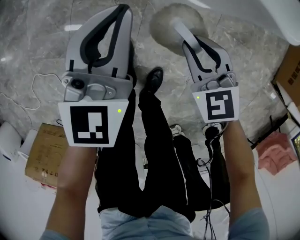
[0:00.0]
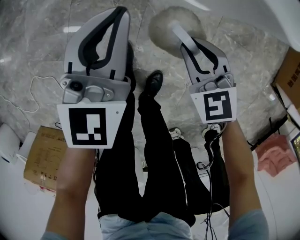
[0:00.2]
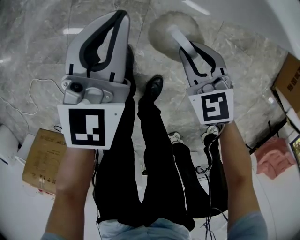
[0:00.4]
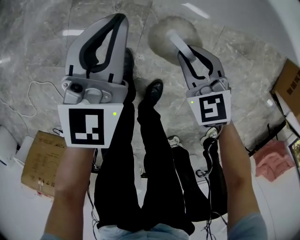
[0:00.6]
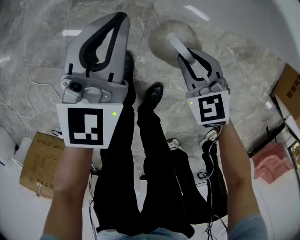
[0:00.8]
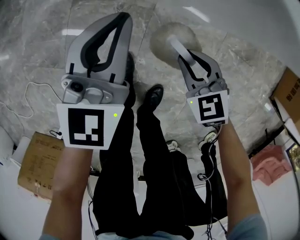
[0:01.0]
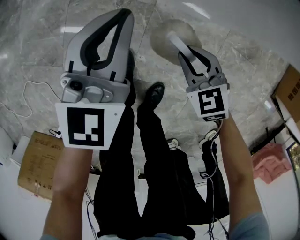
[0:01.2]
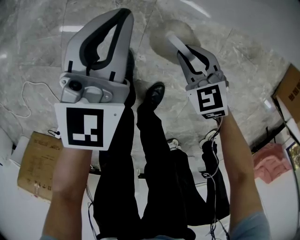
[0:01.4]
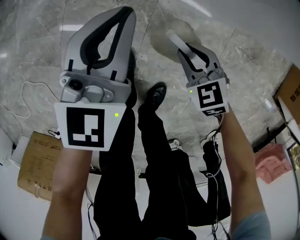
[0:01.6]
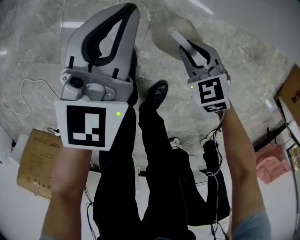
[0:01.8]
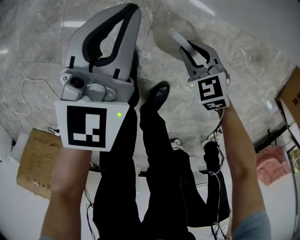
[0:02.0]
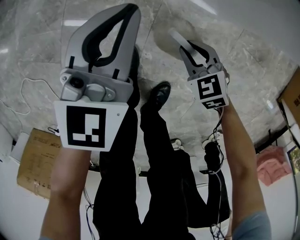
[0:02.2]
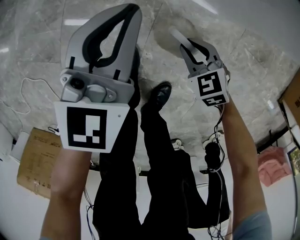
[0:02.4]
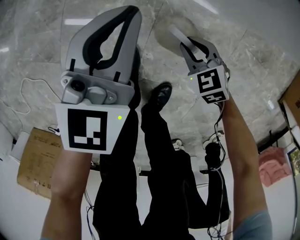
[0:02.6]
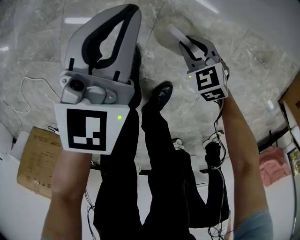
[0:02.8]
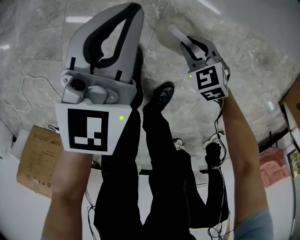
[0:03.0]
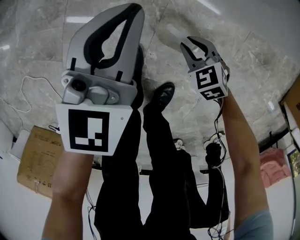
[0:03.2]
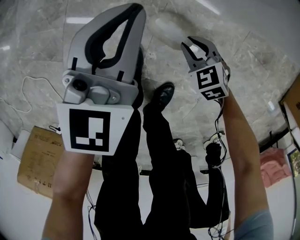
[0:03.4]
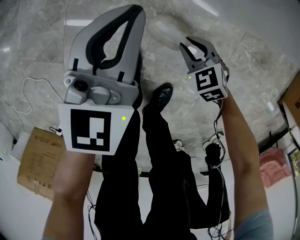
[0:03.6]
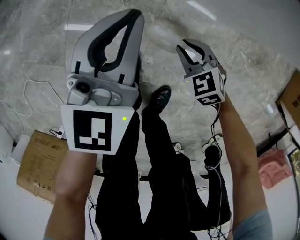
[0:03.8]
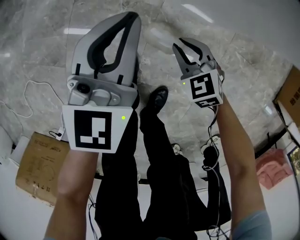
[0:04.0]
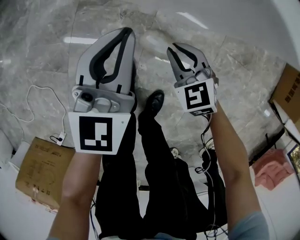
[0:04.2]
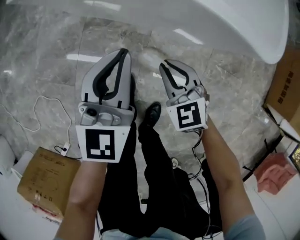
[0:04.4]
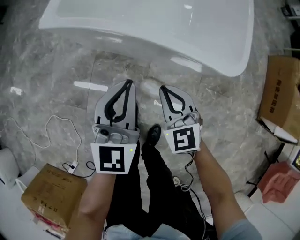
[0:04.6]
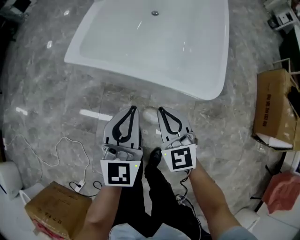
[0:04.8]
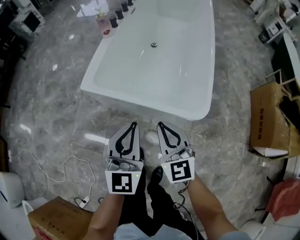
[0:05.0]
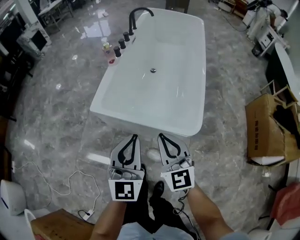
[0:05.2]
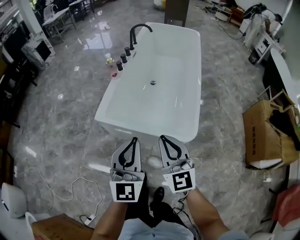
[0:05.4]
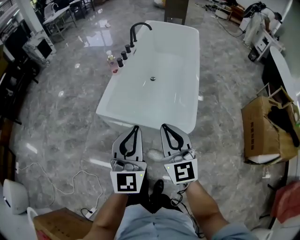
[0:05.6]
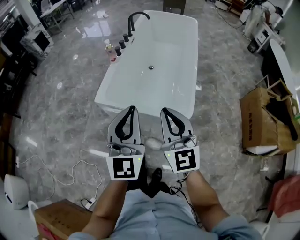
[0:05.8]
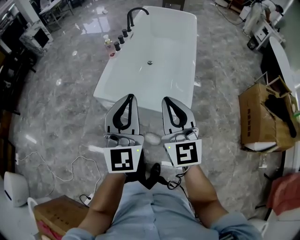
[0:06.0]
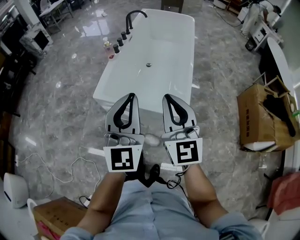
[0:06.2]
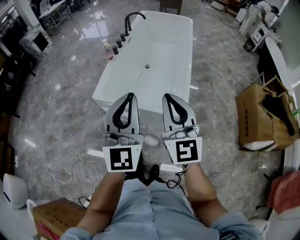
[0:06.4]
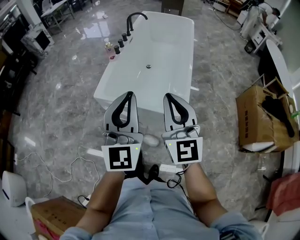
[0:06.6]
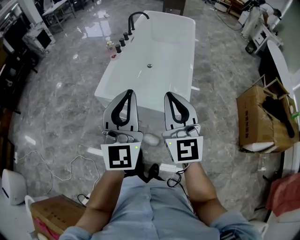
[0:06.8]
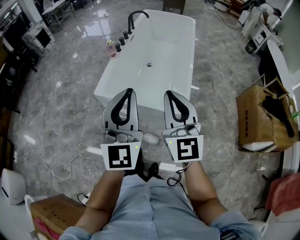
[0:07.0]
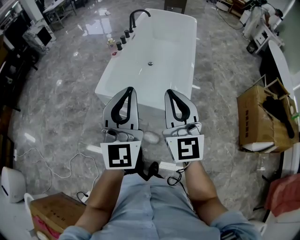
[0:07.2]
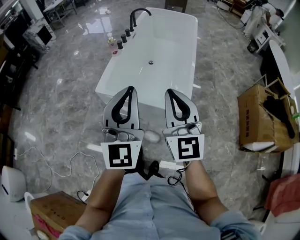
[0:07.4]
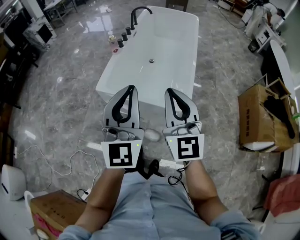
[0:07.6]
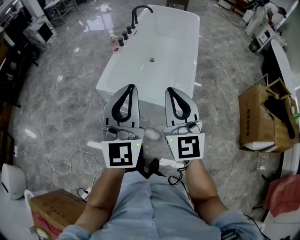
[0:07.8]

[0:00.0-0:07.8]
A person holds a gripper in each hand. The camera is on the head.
0:00.0 to 0:01.6: The two grippers go roughly 15 cm downward.
0:01.6 to 0:03.2: The right gripper heads downward, covering about 10 cm. The left gripper moves roughly 5 cm.
0:03.2 to 0:04.6: Both grippers move upward, approximately 35 cm. The right gripper turns by approximately 30 degrees, and closes up.
0:04.6 to 0:06.2: The grippers both shift upward by roughly 50 cm. The right gripper points its fingers about 40 degrees further upward. The left gripper swivels about 30 degrees.
0:06.2 to 0:07.8: The grippers stay close to where they were, moving slightly.

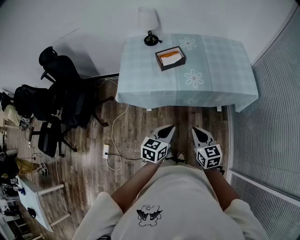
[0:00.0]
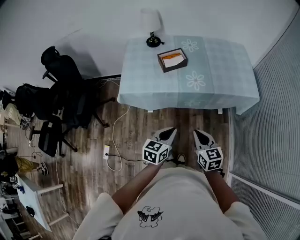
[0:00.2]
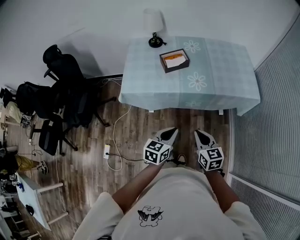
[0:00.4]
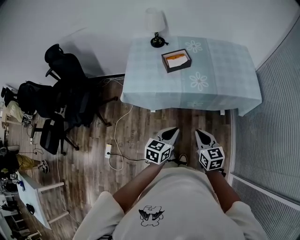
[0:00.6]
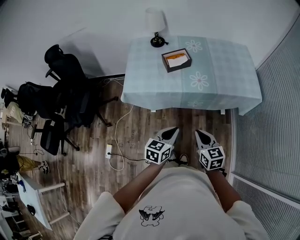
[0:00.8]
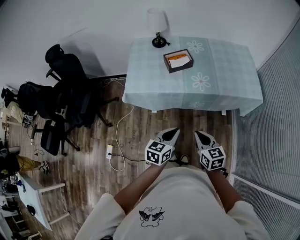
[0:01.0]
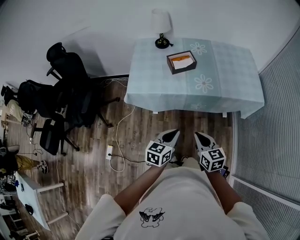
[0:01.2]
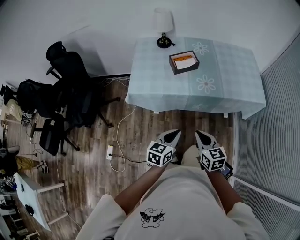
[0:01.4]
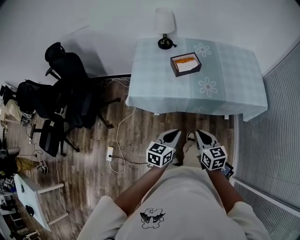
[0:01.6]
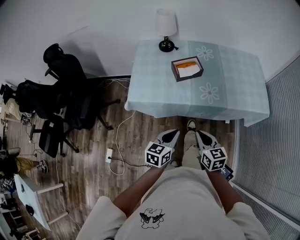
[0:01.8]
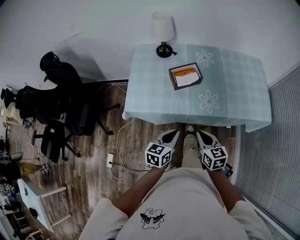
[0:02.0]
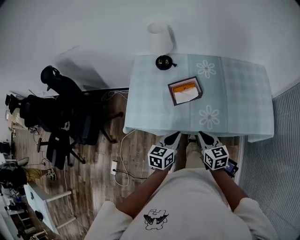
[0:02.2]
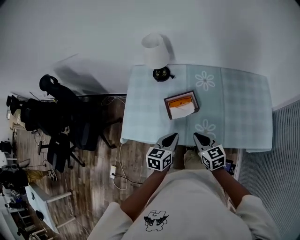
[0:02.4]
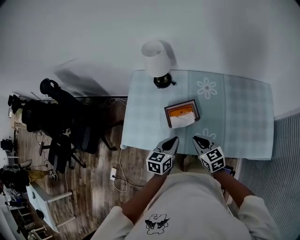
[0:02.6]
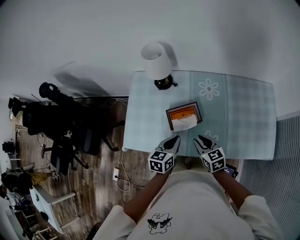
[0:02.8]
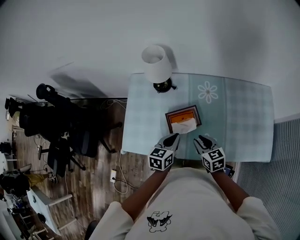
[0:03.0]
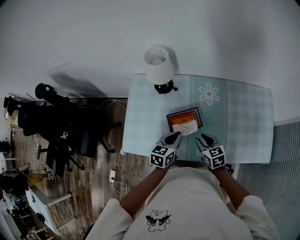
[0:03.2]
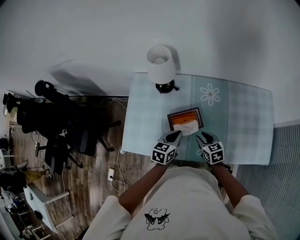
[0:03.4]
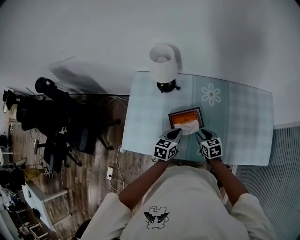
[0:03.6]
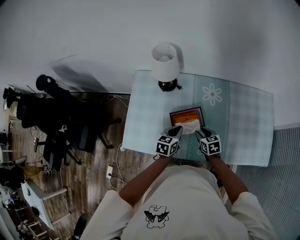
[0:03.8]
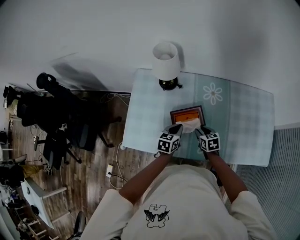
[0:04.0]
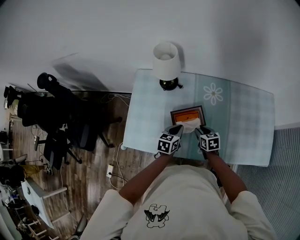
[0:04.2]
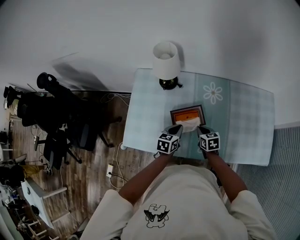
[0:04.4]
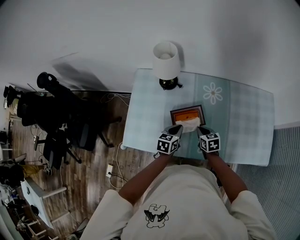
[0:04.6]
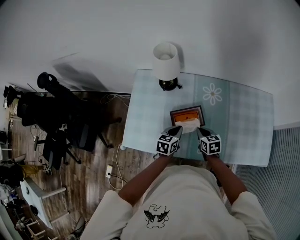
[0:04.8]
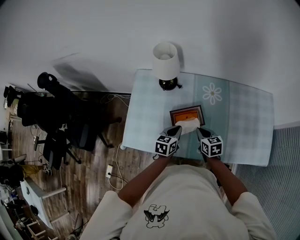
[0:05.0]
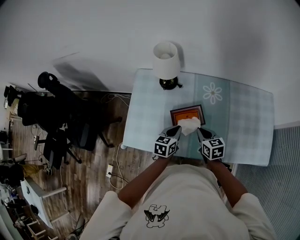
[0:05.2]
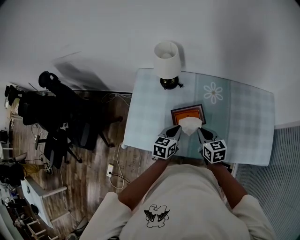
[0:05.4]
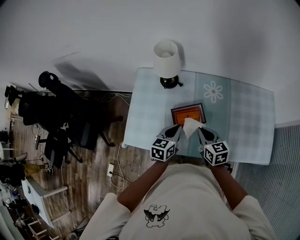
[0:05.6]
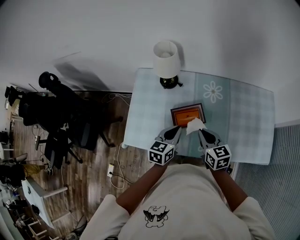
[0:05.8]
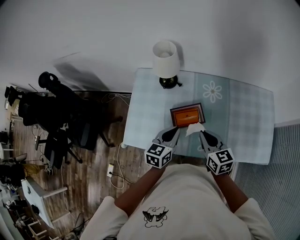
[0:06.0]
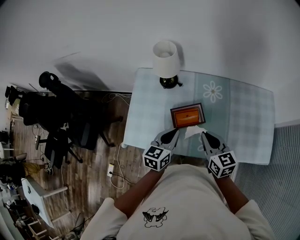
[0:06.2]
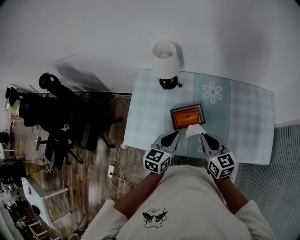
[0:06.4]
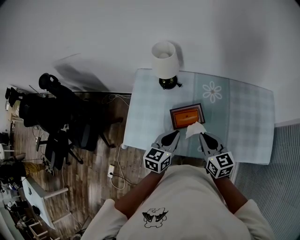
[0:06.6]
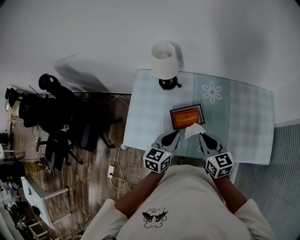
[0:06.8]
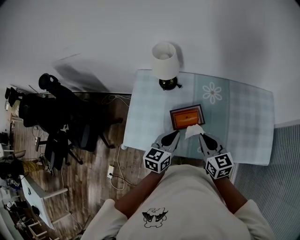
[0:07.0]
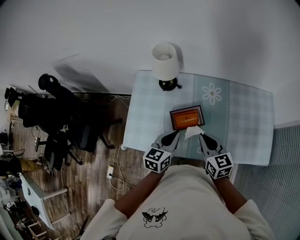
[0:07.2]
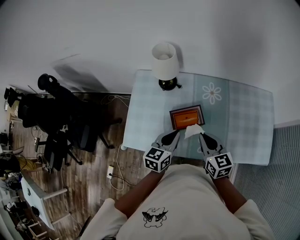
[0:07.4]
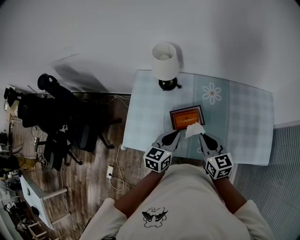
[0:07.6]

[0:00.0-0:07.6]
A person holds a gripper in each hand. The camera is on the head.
0:00.0 to 0:01.6: Both grippers travel together to the left, roughly 5 cm.
0:01.6 to 0:03.0: Both grippers are carried forward, approximately 40 cm. The right gripper opens up.
0:03.0 to 0:04.6: The left gripper heads downward, covering about 5 cm; the right gripper is displaced downward and forward by some 10 cm, and closes up.
0:04.6 to 0:06.0: Both grippers move upward, roughly 15 cm. The right gripper turns by roughly 20 degrees.
0:06.0 to 0:07.6: The grippers stay close to where they were, moving slightly.

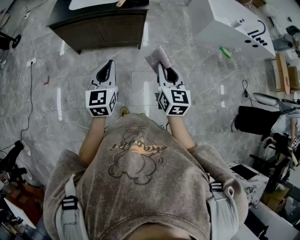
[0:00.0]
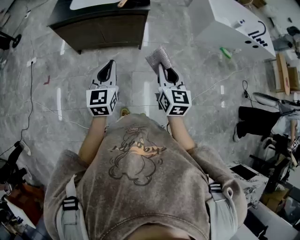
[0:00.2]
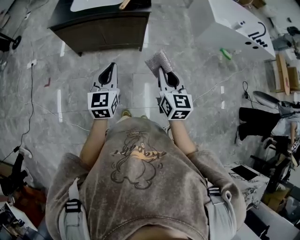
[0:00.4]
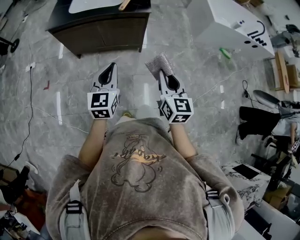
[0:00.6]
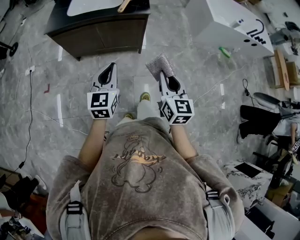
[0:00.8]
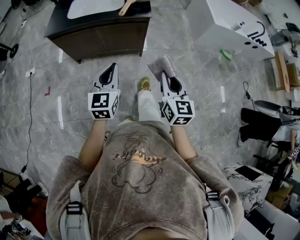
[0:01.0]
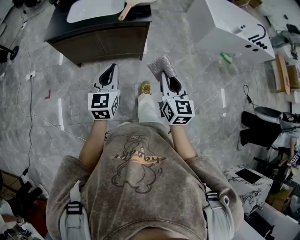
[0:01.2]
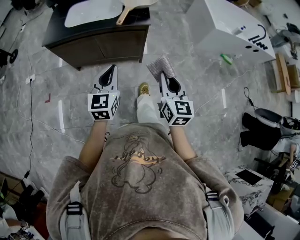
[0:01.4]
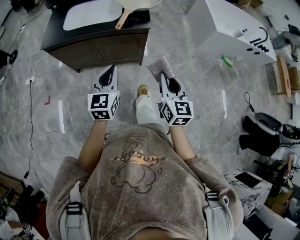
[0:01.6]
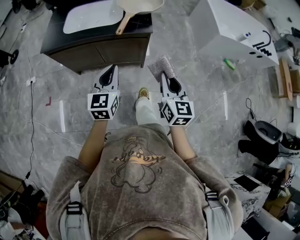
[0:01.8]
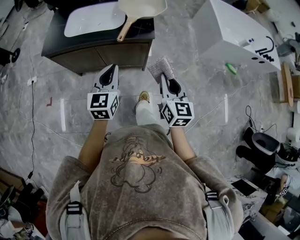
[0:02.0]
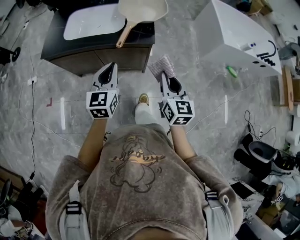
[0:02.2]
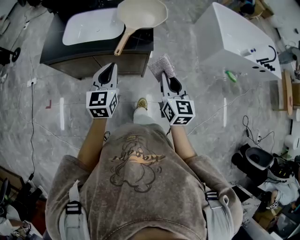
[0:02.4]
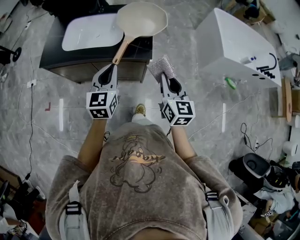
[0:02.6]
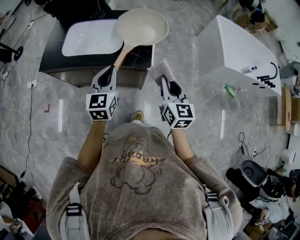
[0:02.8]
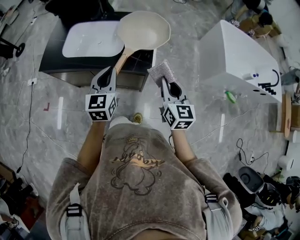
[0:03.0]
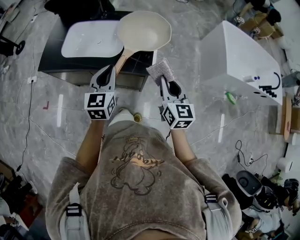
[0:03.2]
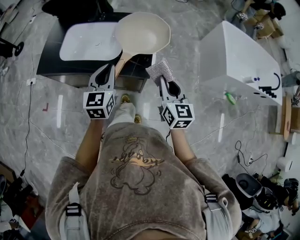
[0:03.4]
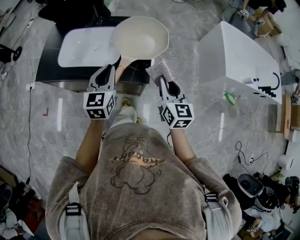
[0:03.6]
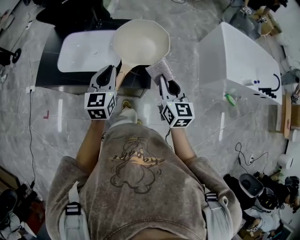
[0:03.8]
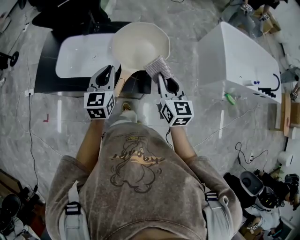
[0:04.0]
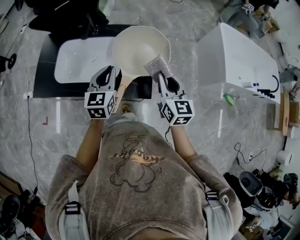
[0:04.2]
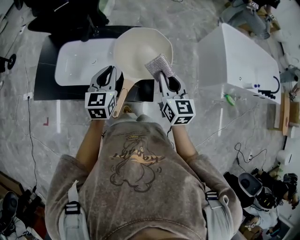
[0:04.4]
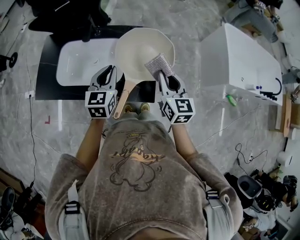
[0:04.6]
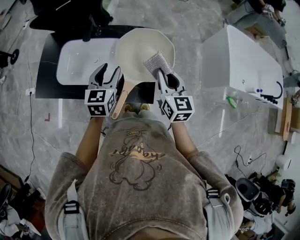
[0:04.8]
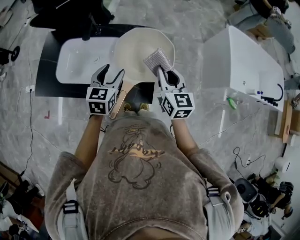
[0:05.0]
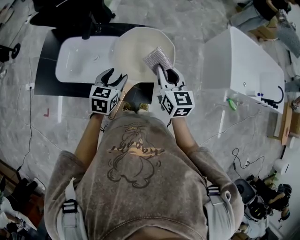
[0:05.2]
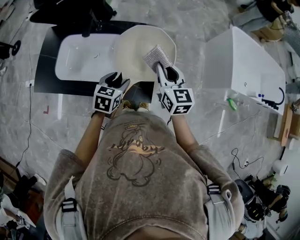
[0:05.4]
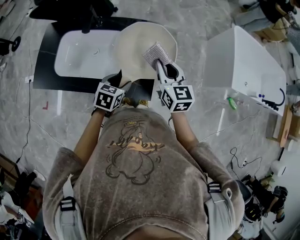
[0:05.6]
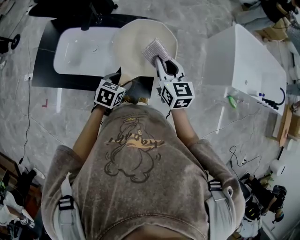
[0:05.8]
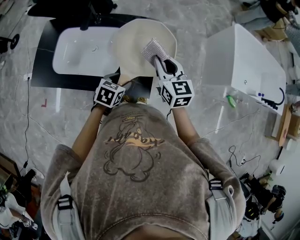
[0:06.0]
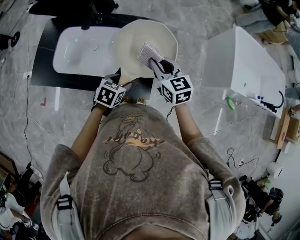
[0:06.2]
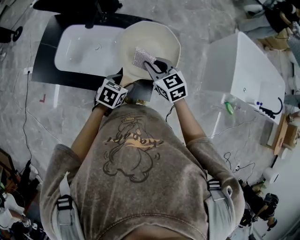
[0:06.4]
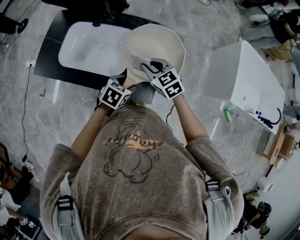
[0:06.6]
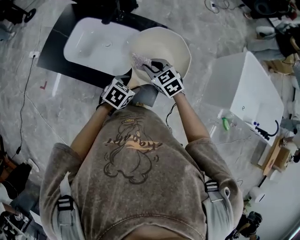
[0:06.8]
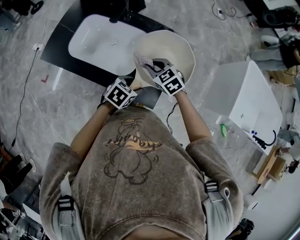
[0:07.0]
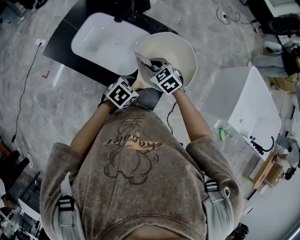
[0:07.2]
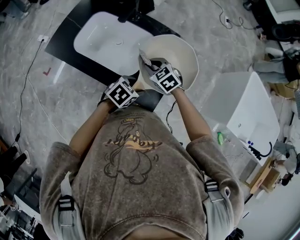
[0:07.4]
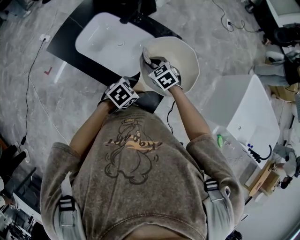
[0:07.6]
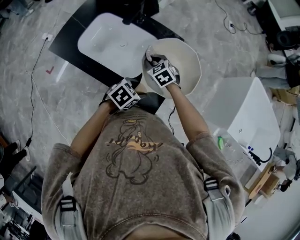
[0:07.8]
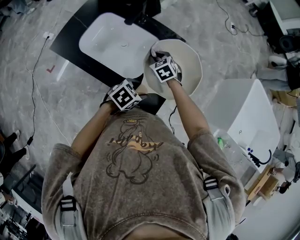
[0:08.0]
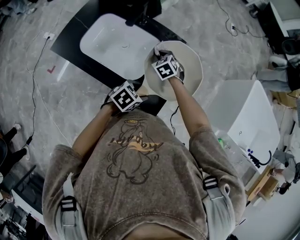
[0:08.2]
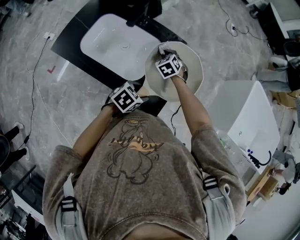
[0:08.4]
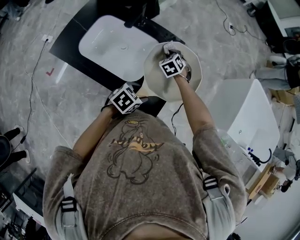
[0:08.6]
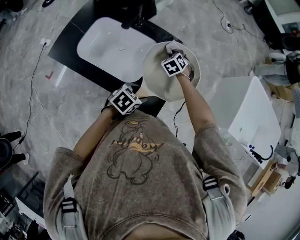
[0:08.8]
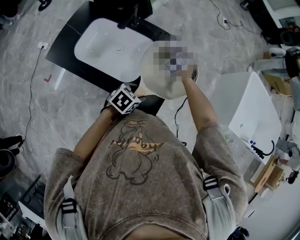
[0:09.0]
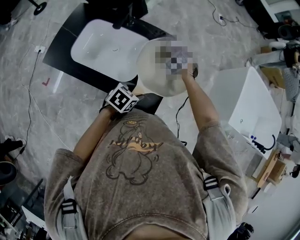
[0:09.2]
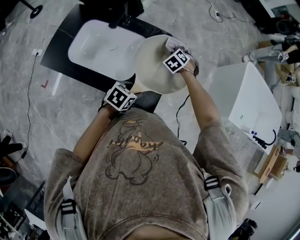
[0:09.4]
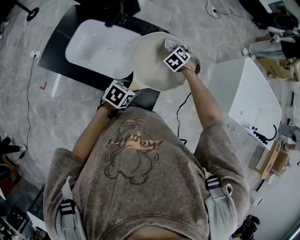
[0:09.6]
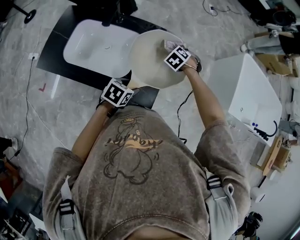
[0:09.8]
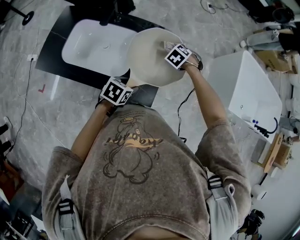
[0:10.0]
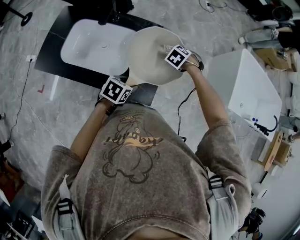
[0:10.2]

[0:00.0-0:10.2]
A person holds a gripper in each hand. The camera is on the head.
0:00.0 to 0:01.4: Both grippers travel together forward, some 10 cm.
0:01.4 to 0:03.0: Both grippers travel together forward, roughly 30 cm.
0:03.0 to 0:04.4: The two grippers go about 20 cm forward.
0:04.4 to 0:05.8: The right gripper goes about 5 cm forward; the left gripper shifts approximately 15 cm downward and to the right, tilts its fingers some 30 degrees downward, and opens its fingers.
0:05.8 to 0:07.2: The right gripper moves to the left and downward, approximately 20 cm, and changes its angle by approximately 60 degrees.
0:07.2 to 0:08.8: The right gripper travels forward by about 15 cm, and changes its angle by approximately 30 degrees.
0:08.8 to 0:10.2: The right gripper ends up some 15 cm from where it was, and turns by some 30 degrees.
